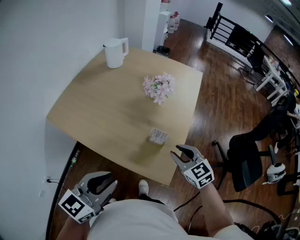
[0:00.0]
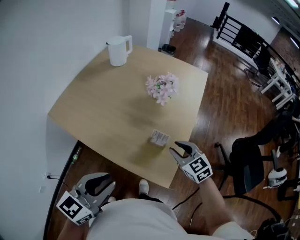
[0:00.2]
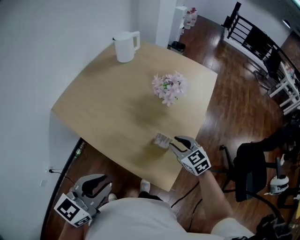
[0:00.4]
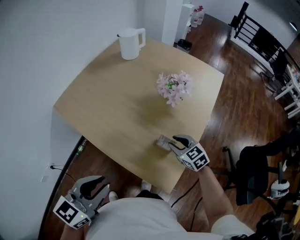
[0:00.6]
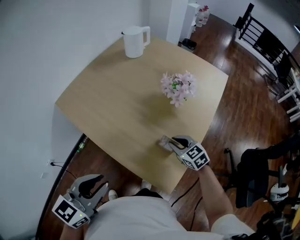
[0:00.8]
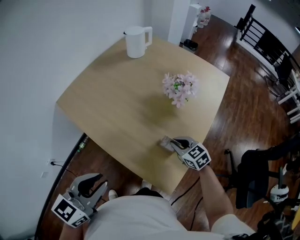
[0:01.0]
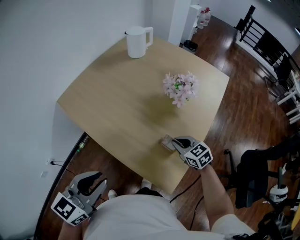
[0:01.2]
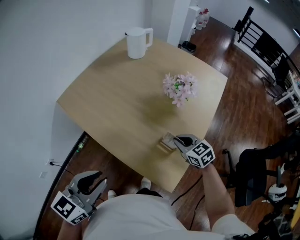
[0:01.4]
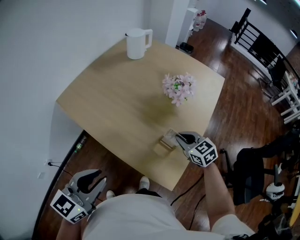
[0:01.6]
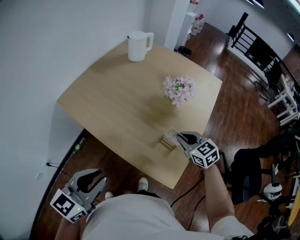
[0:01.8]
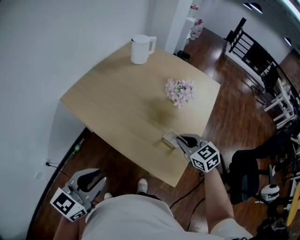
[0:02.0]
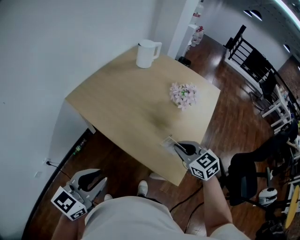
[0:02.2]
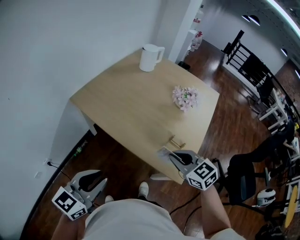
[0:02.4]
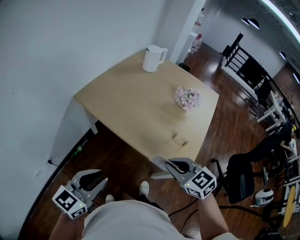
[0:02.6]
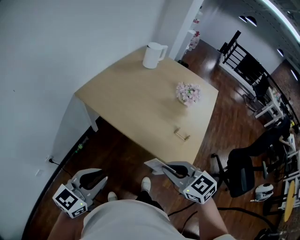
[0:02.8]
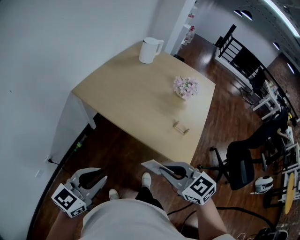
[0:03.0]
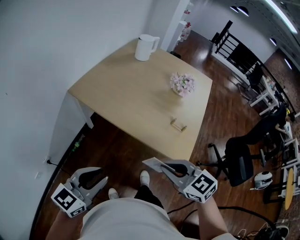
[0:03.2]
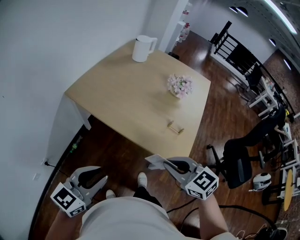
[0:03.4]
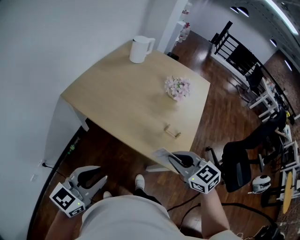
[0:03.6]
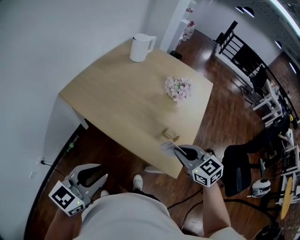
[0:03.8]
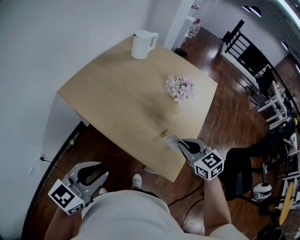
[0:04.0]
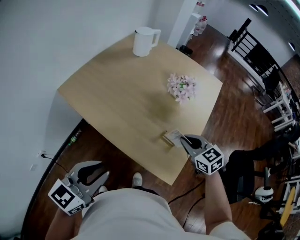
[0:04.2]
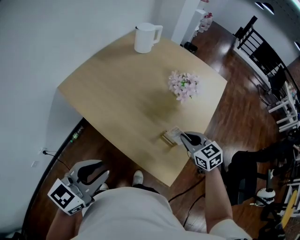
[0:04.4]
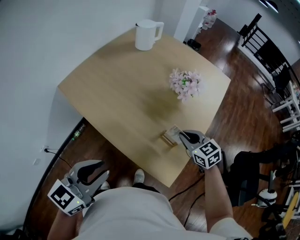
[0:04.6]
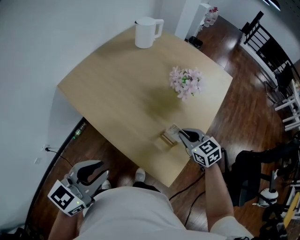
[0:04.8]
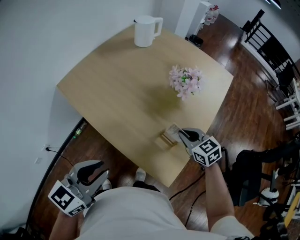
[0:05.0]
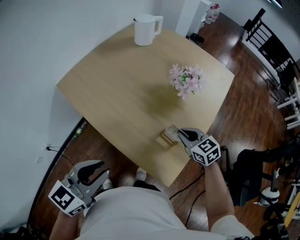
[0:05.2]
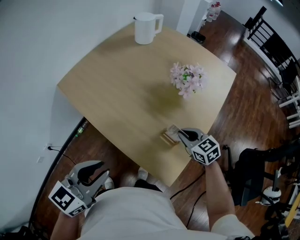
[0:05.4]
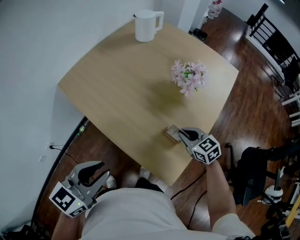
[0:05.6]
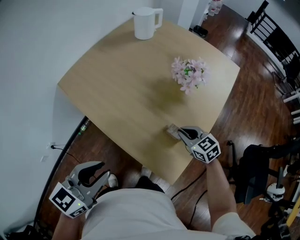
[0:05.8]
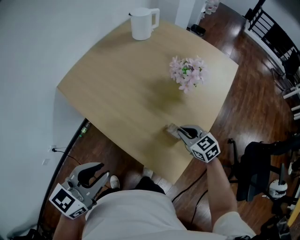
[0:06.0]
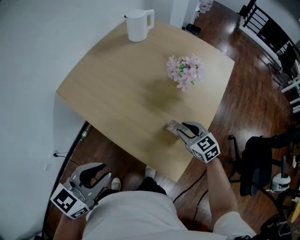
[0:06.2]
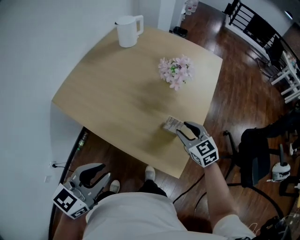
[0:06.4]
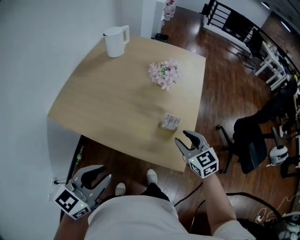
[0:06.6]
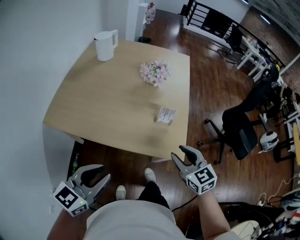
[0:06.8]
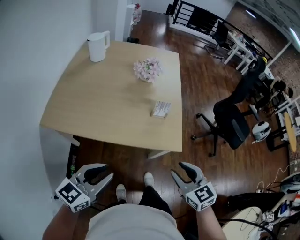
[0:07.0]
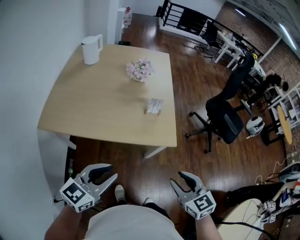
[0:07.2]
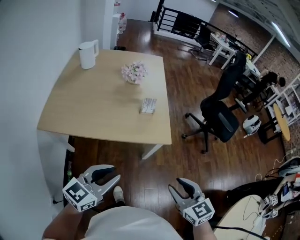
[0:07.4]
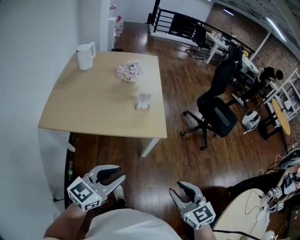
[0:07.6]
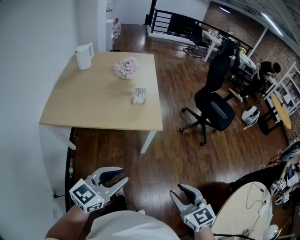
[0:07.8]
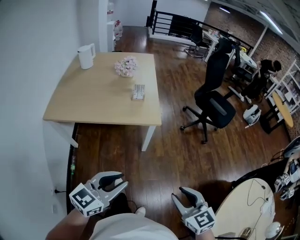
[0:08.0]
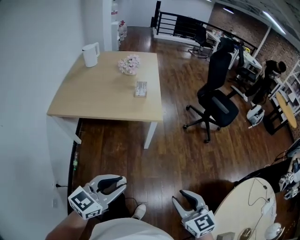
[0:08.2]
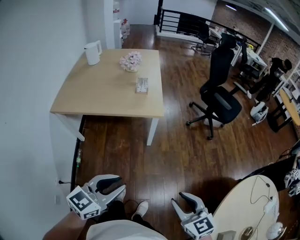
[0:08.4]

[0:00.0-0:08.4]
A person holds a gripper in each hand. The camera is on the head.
0:00.0 to 0:01.4: The right gripper heads forward and downward, covering roughly 15 cm, and closes up.
0:01.4 to 0:02.8: The right gripper shifts about 40 cm to the left, backward and upward. Meanwhile the left gripper is displaced to the left and backward by roughly 25 cm.
0:02.8 to 0:04.2: The right gripper shifts some 30 cm to the right and forward. The left gripper moves to the right and forward, approximately 20 cm.
0:04.2 to 0:05.6: The left gripper goes approximately 5 cm to the right; the right gripper is displaced downward by about 10 cm.
0:05.6 to 0:07.0: The left gripper shifts by some 15 cm, and changes its angle by approximately 40 degrees; the right gripper changes place by approximately 40 cm, swivels roughly 40 degrees, and opens its fingers.
0:07.0 to 0:08.4: Both grippers move backward and to the right, roughly 40 cm.

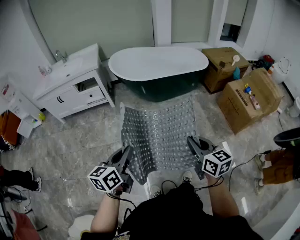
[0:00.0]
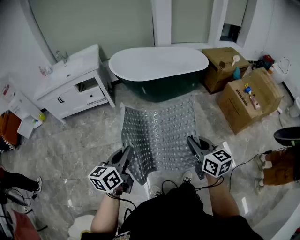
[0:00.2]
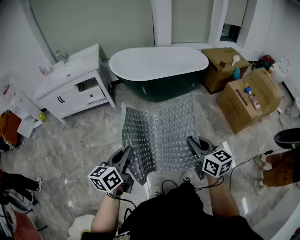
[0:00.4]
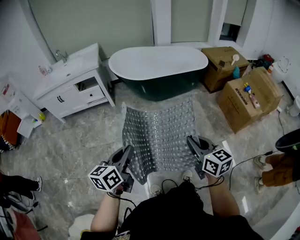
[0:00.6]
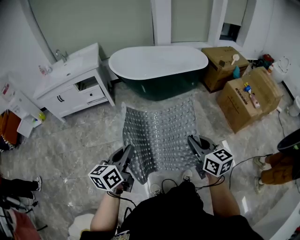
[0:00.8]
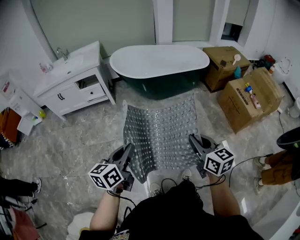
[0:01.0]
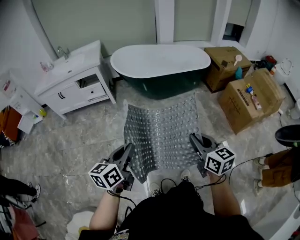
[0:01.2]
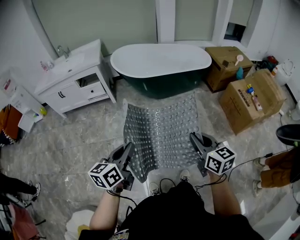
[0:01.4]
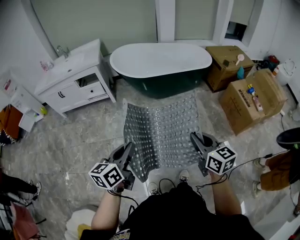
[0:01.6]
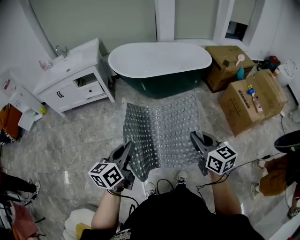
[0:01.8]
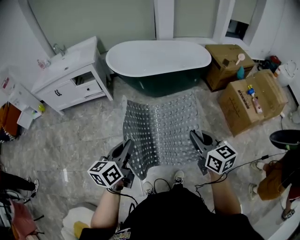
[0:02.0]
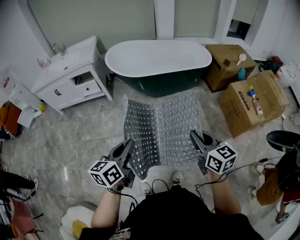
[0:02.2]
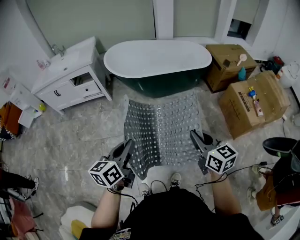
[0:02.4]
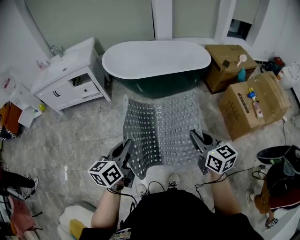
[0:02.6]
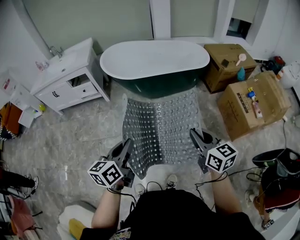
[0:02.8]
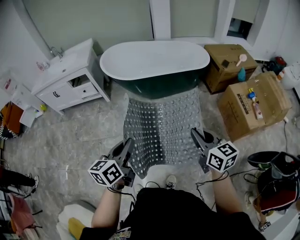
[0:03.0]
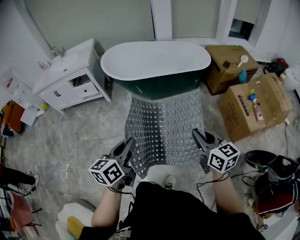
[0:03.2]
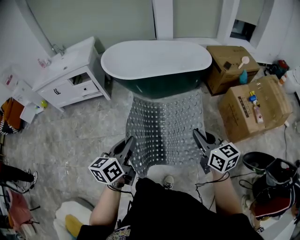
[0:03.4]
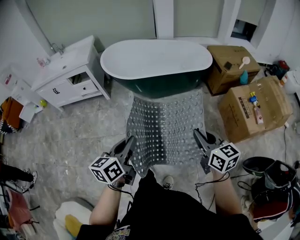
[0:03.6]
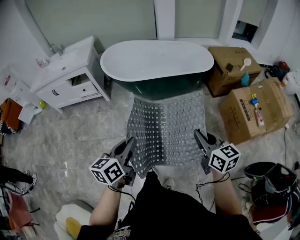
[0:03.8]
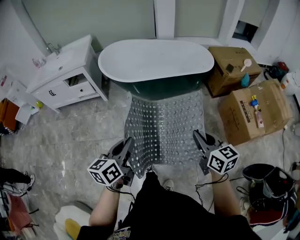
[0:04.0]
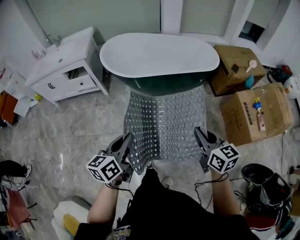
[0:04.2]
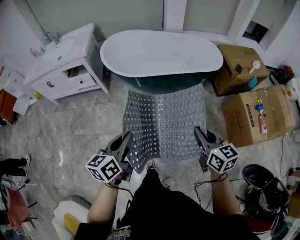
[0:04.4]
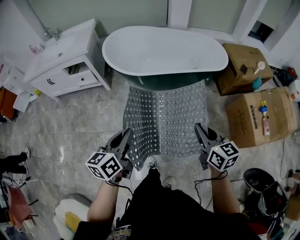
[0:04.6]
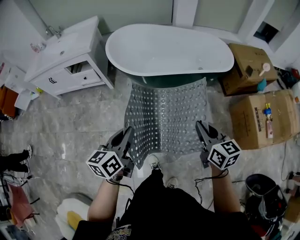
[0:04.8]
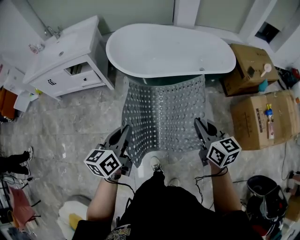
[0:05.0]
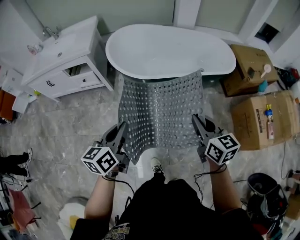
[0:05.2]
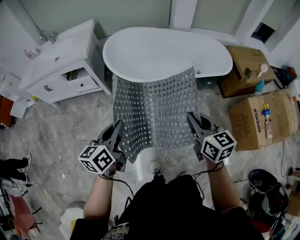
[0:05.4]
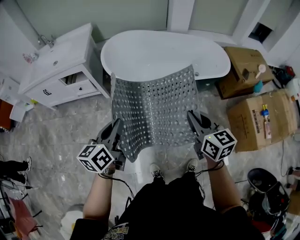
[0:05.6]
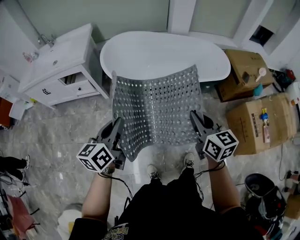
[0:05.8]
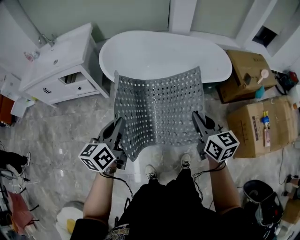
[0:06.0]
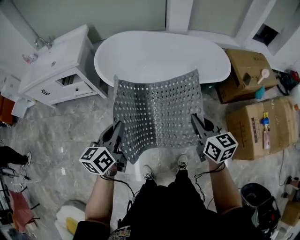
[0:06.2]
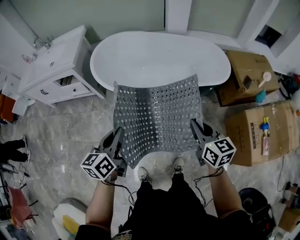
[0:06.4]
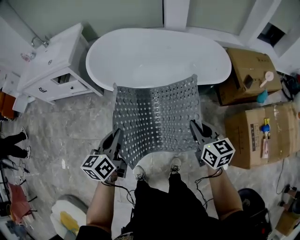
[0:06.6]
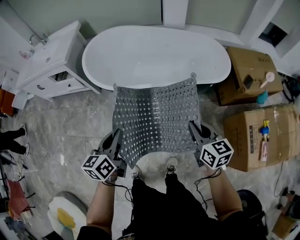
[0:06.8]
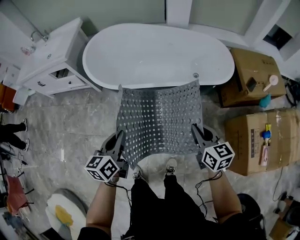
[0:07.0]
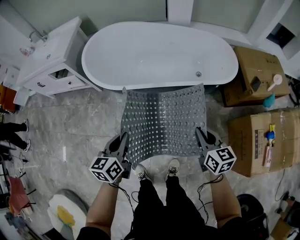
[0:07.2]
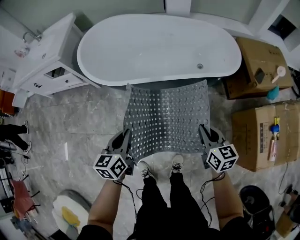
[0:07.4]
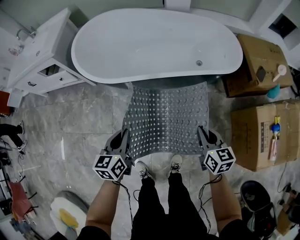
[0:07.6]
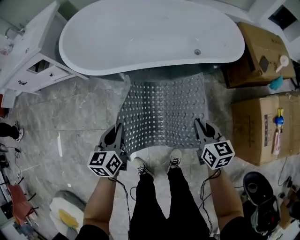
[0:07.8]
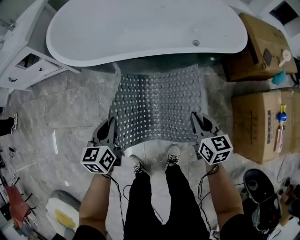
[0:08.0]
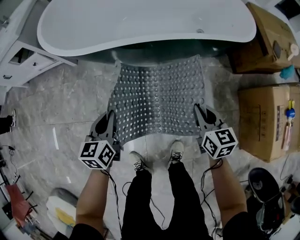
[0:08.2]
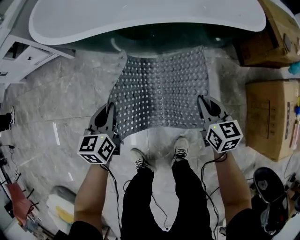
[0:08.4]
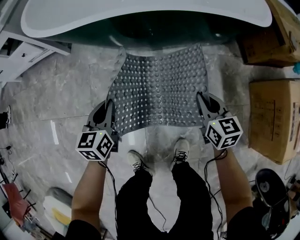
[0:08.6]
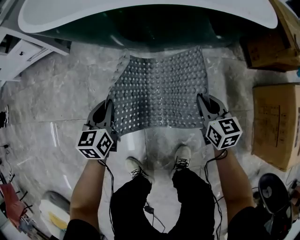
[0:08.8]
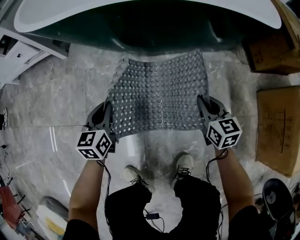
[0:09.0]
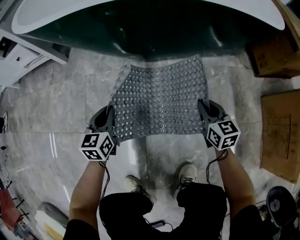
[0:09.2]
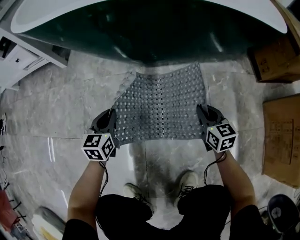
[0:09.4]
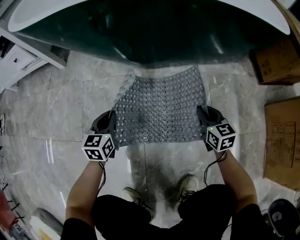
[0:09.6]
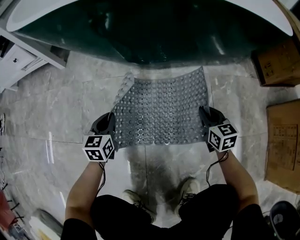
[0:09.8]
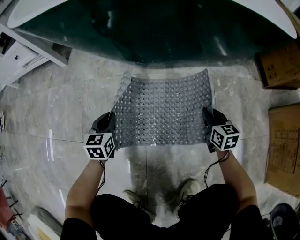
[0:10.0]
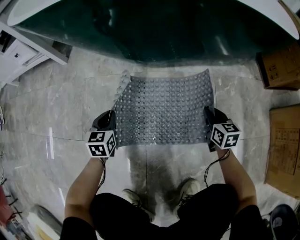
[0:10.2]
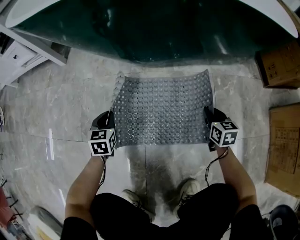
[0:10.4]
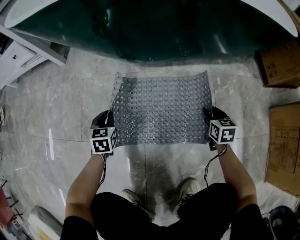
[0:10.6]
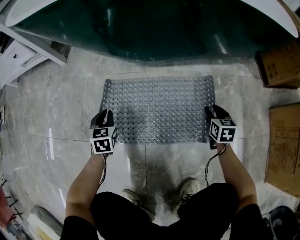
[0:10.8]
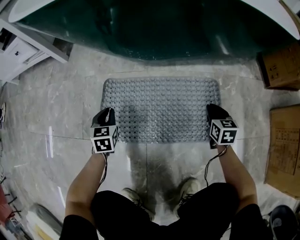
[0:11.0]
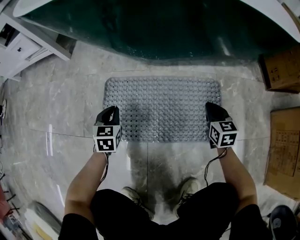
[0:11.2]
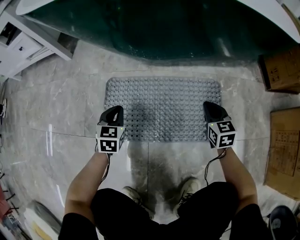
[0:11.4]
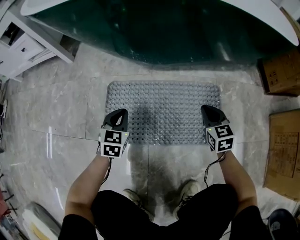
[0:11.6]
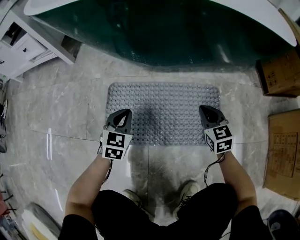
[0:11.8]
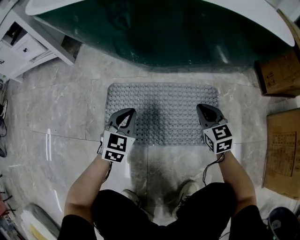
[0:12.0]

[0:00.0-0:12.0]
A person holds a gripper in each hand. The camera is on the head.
0:00.0 to 0:01.6: The right gripper shifts by approximately 5 cm.
0:01.6 to 0:03.0: Both grippers move to the right and forward, approximately 20 cm.
0:03.0 to 0:04.4: The grippers both shift forward by approximately 15 cm.
0:04.4 to 0:06.0: Both grippers move forward, roughly 20 cm.
0:06.0 to 0:07.6: Both grippers travel together downward and to the right, about 30 cm.
0:07.6 to 0:09.0: Both grippers travel together downward, some 40 cm.
0:09.0 to 0:10.4: Both grippers travel together downward, some 20 cm.
0:10.4 to 0:12.0: The left gripper travels to the right and upward by roughly 10 cm, and swivels approximately 30 degrees. The right gripper heads upward and to the left, covering roughly 10 cm, swivels roughly 30 degrees, and opens and closes again.

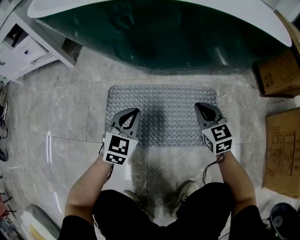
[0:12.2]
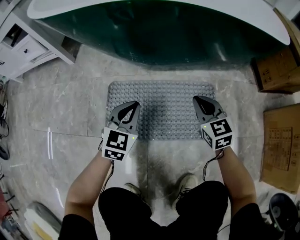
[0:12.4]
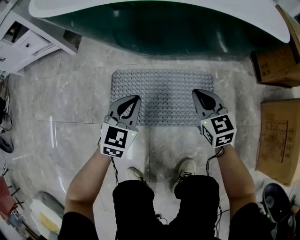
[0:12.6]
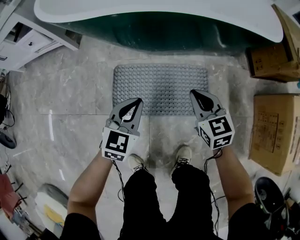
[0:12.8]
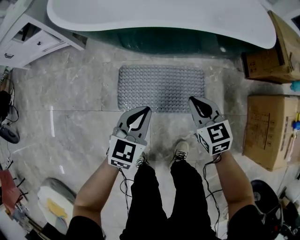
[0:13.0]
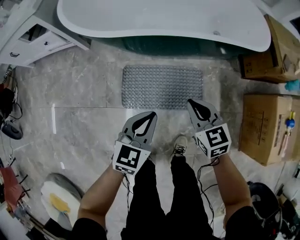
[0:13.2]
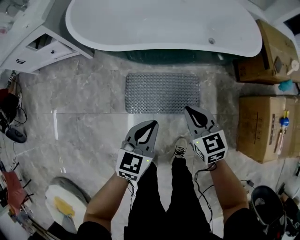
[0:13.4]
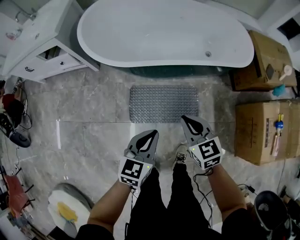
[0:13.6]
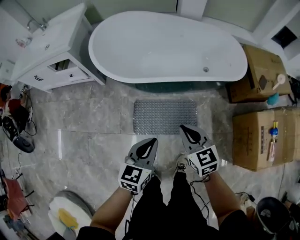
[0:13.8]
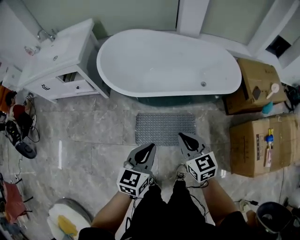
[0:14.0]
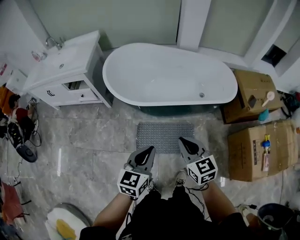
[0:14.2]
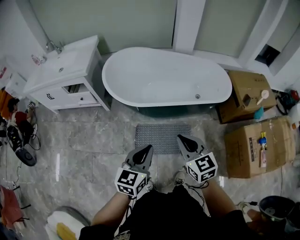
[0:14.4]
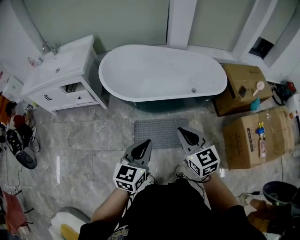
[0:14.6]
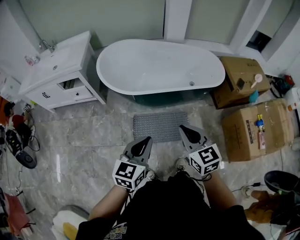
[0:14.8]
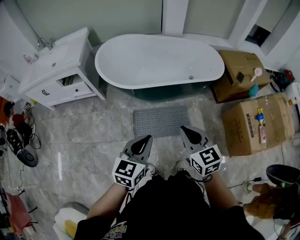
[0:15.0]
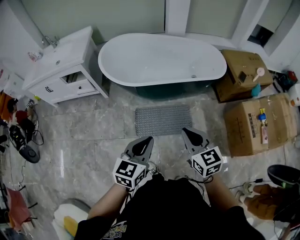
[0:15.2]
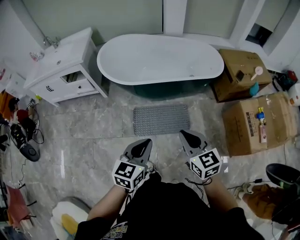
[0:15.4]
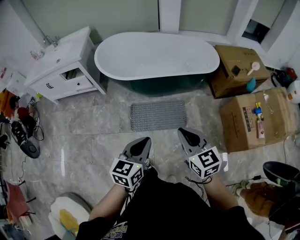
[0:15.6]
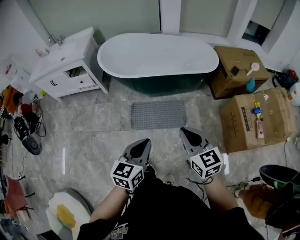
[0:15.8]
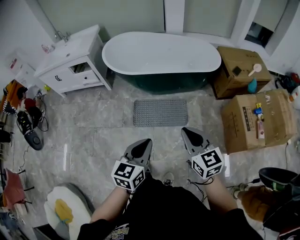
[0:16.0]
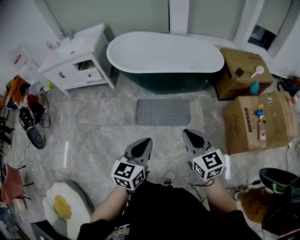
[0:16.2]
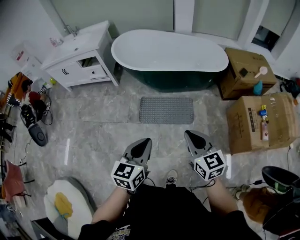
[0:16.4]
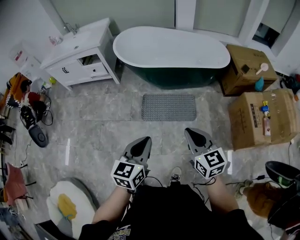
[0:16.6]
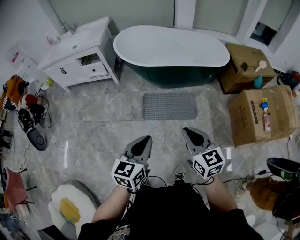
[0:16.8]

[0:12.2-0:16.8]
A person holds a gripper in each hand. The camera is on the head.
0:12.2 to 0:13.8: Both grippers move upward, roughly 60 cm. The left gripper changes its angle by roughly 30 degrees.
0:13.8 to 0:15.2: Both grippers travel together backward and upward, some 20 cm.
0:15.2 to 0:16.8: The two grippers go about 20 cm backward.
